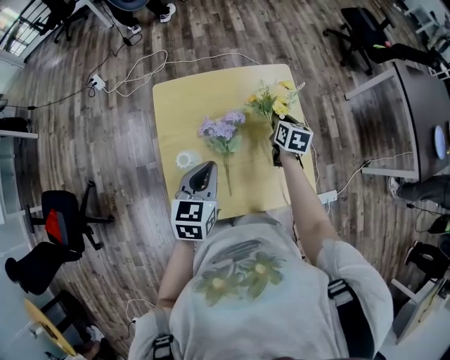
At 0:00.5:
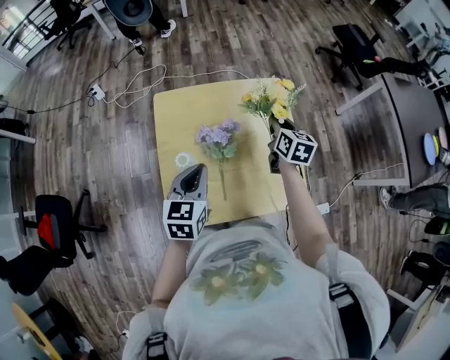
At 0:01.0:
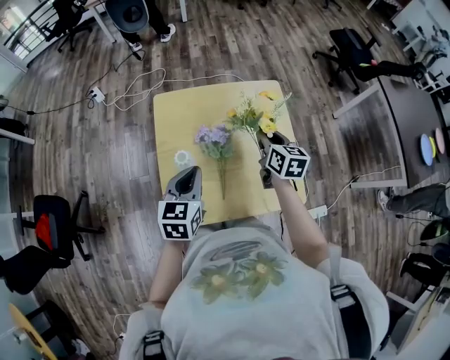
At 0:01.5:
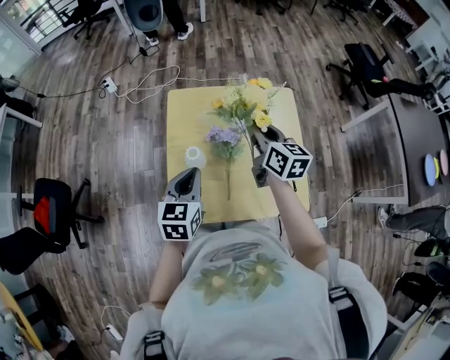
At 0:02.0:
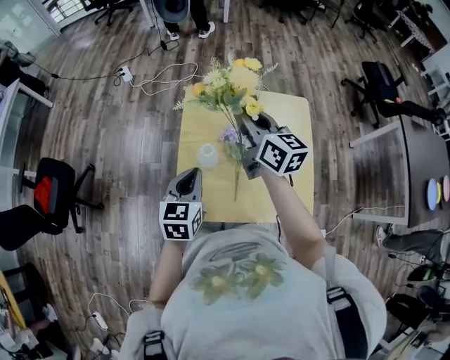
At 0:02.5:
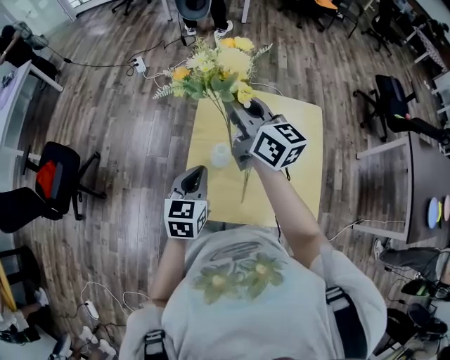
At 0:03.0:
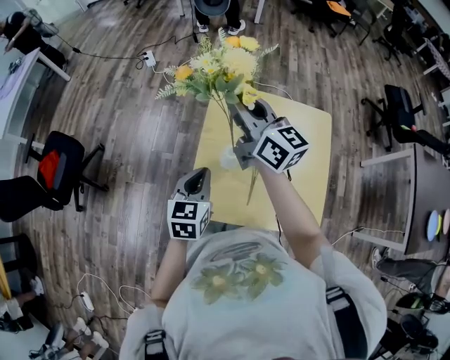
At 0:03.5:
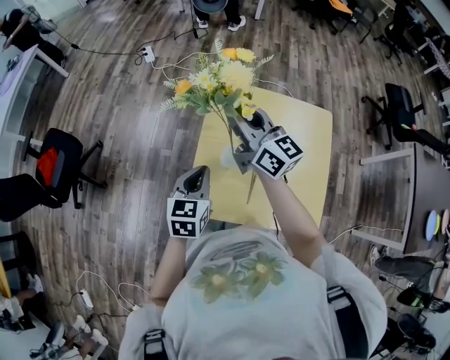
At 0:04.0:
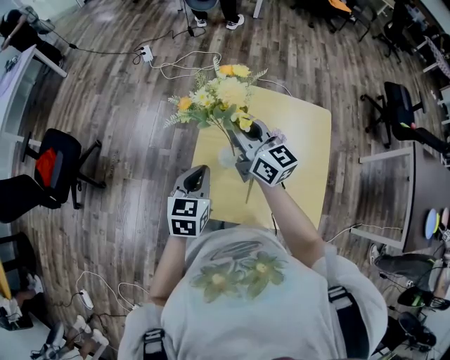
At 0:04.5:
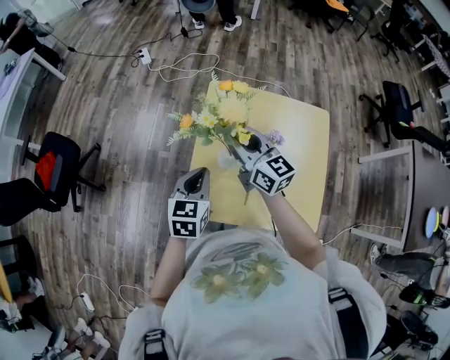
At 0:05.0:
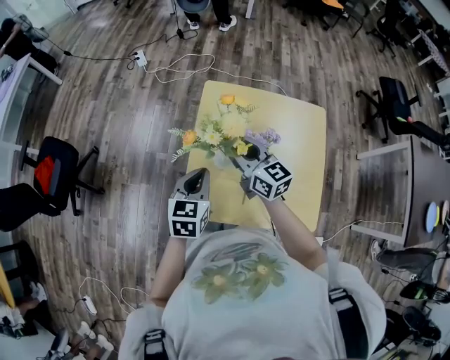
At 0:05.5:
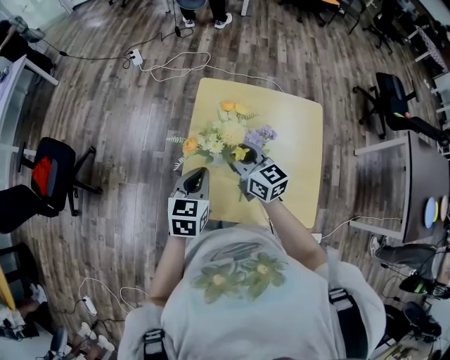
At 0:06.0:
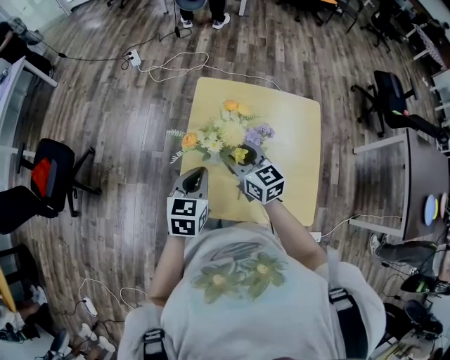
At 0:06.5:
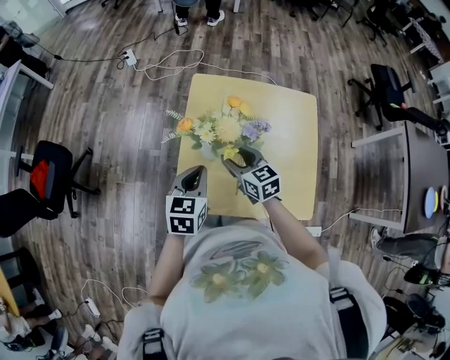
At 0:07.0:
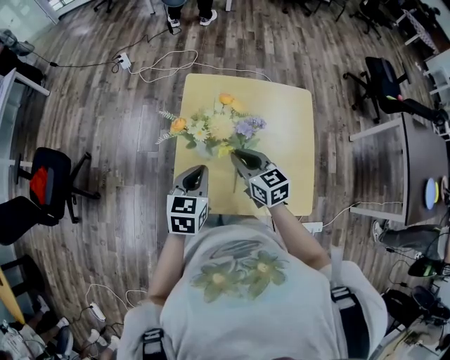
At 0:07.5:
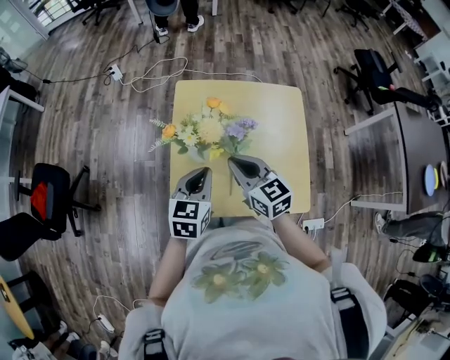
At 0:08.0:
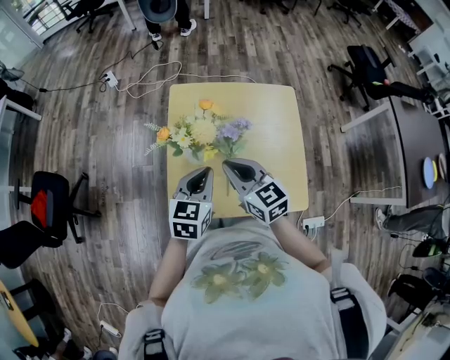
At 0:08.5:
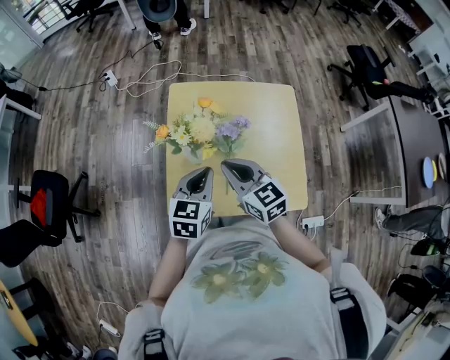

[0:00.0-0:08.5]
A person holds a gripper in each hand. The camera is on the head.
0:00.0 to 0:02.0: The left gripper ends up some 15 cm from where it was. The right gripper moves upward, about 25 cm, and angles its fingers upward, by approximately 40 degrees.
0:02.0 to 0:04.0: The left gripper shifts about 5 cm to the left; the right gripper is displaced to the left by roughly 10 cm.
0:04.0 to 0:06.5: The left gripper shifts by roughly 5 cm; the right gripper travels downward and backward by about 20 cm, swivels about 30 degrees, and opens up.
0:06.5 to 0:08.5: The left gripper travels to the right by roughly 10 cm. The right gripper is displaced upward and backward by about 10 cm, and closes.

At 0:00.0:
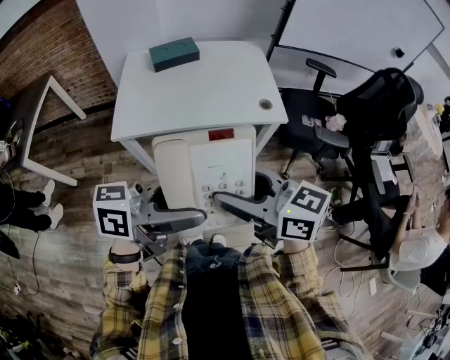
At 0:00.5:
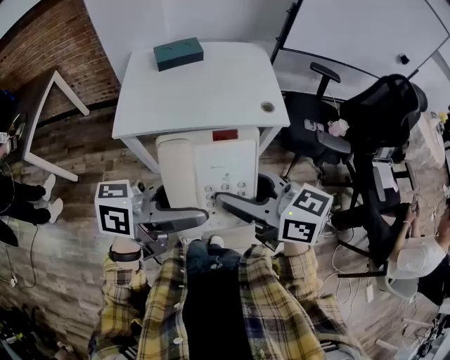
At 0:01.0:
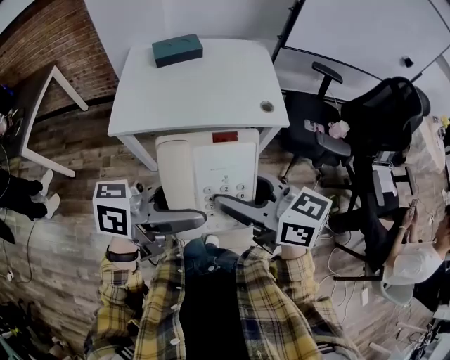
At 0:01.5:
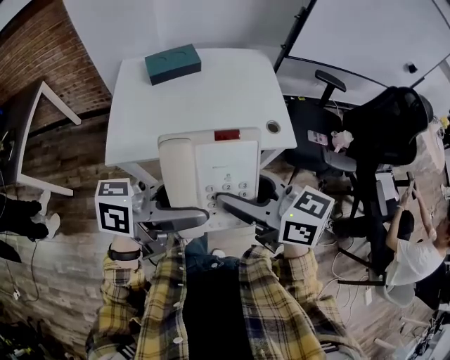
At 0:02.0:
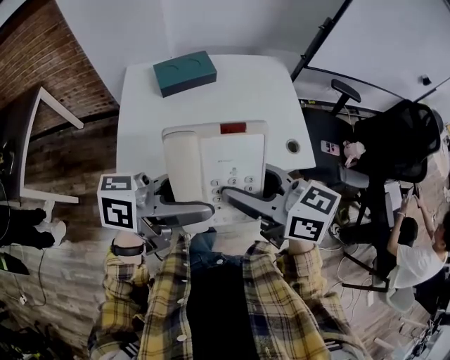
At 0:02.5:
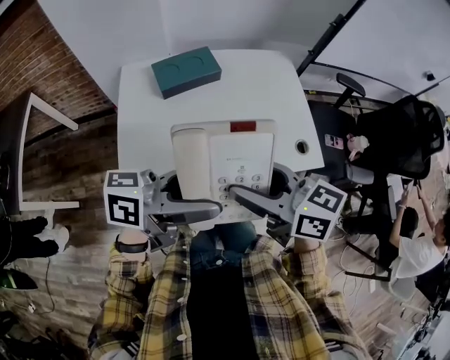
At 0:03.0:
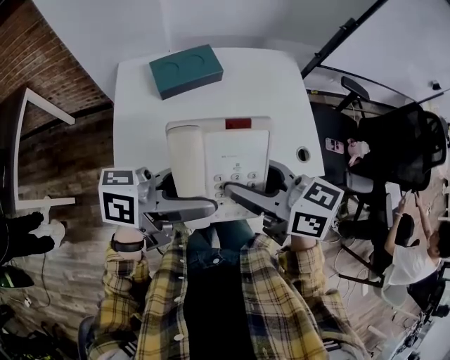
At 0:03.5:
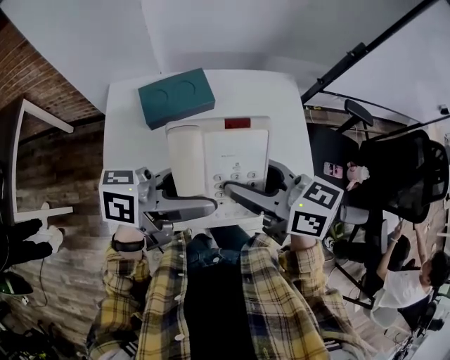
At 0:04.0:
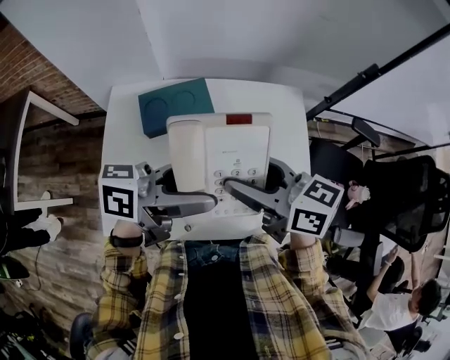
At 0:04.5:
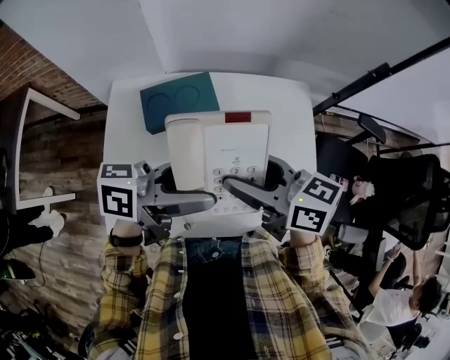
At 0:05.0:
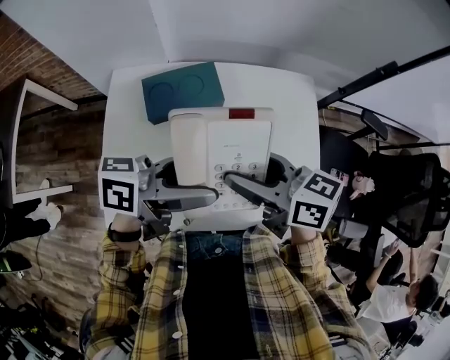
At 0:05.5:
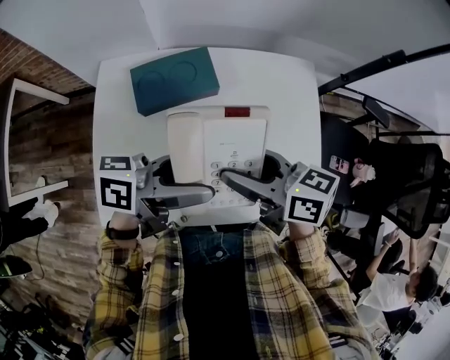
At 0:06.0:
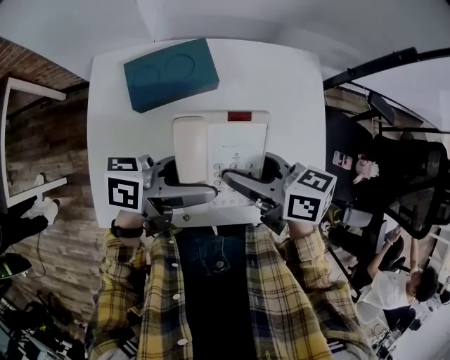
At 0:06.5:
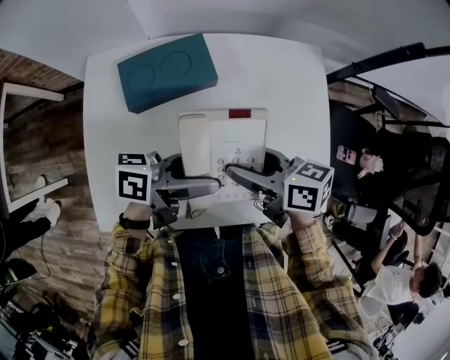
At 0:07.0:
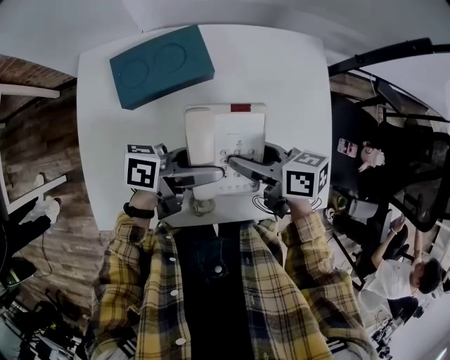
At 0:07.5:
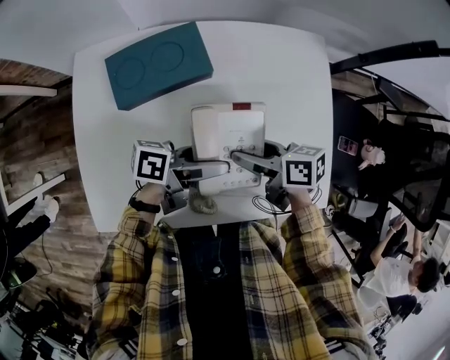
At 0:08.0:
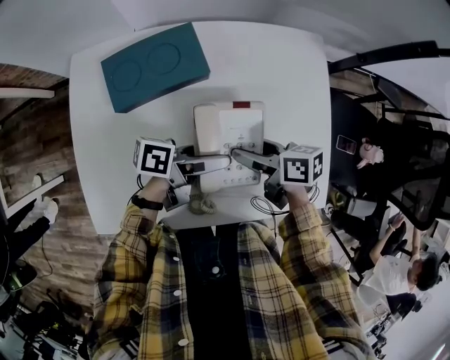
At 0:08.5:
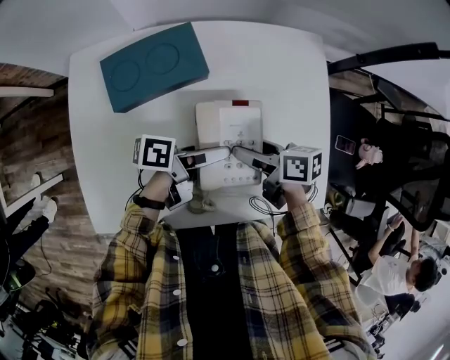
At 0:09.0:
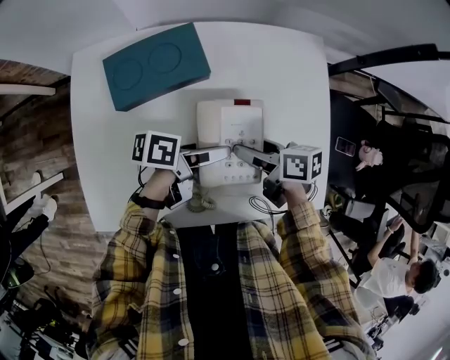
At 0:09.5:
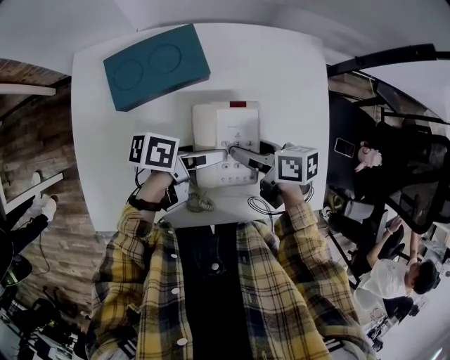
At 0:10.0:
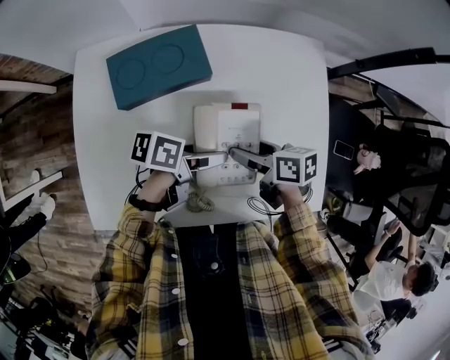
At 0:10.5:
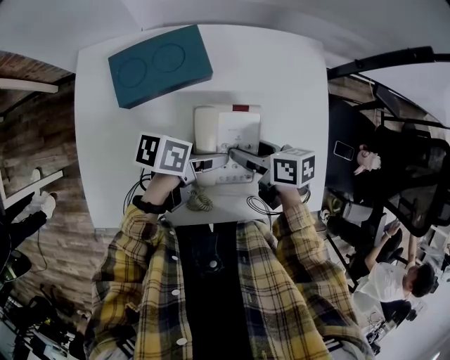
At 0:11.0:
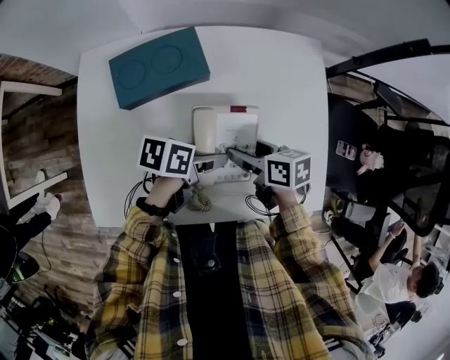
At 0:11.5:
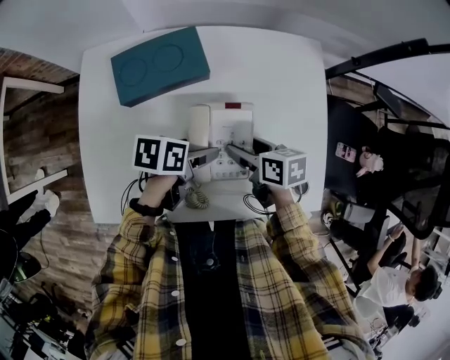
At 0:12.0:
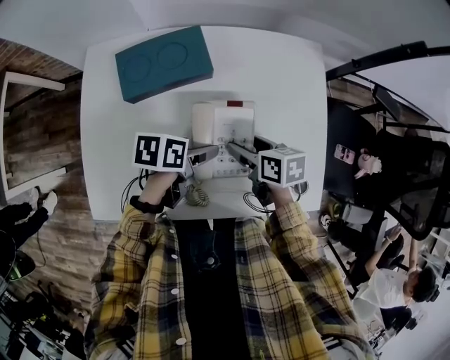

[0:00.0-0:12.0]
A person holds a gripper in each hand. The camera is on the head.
0:00.0 to 0:02.0: The right gripper shifts by roughly 25 cm. Meanwhile the left gripper moves some 25 cm.
0:02.0 to 0:04.0: The right gripper changes place by about 25 cm. The left gripper ends up about 25 cm from where it was.
0:04.0 to 0:06.0: The two grippers go about 10 cm downward.
0:06.0 to 0:08.0: Both grippers move downward, about 15 cm.
0:08.0 to 0:10.0: The left gripper turns by approximately 20 degrees.
0:10.0 to 0:12.0: The left gripper rotates some 20 degrees.

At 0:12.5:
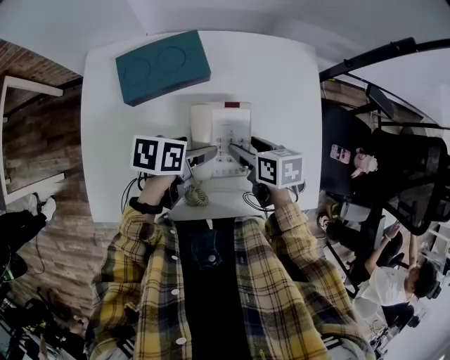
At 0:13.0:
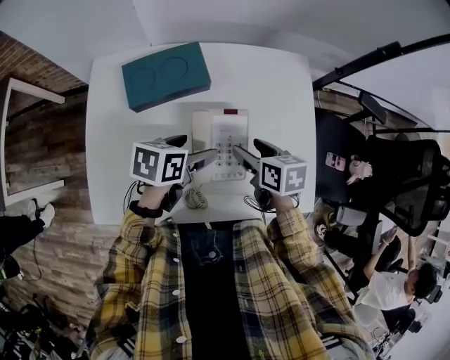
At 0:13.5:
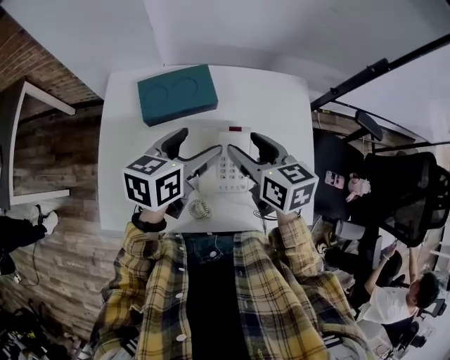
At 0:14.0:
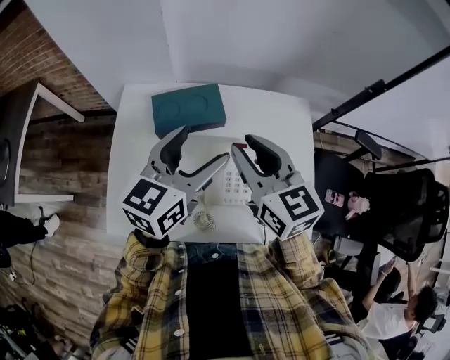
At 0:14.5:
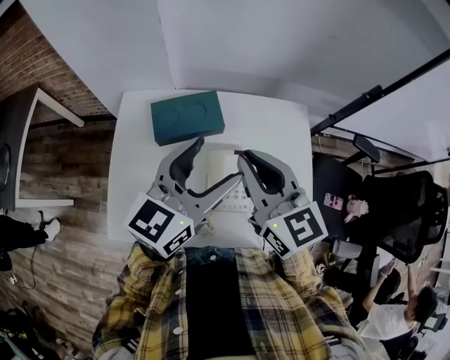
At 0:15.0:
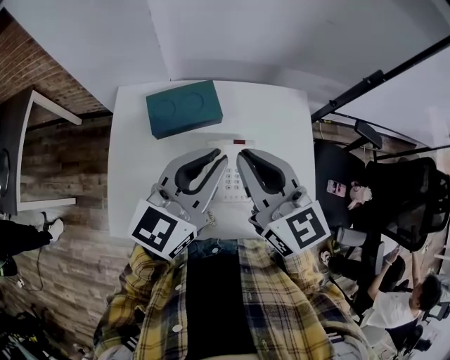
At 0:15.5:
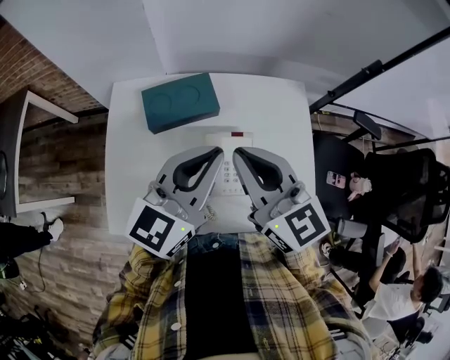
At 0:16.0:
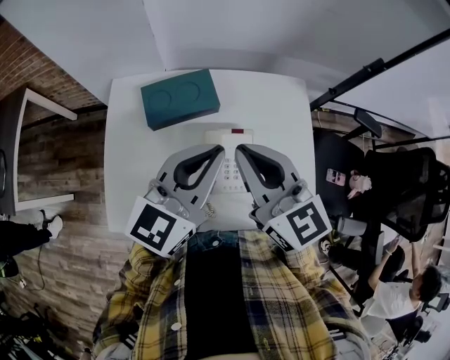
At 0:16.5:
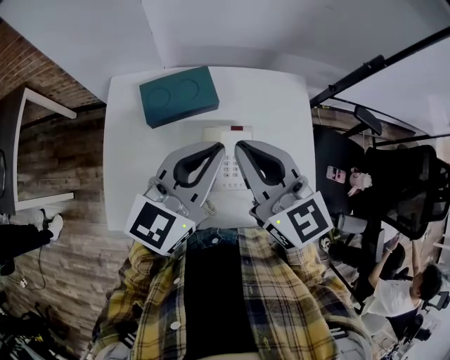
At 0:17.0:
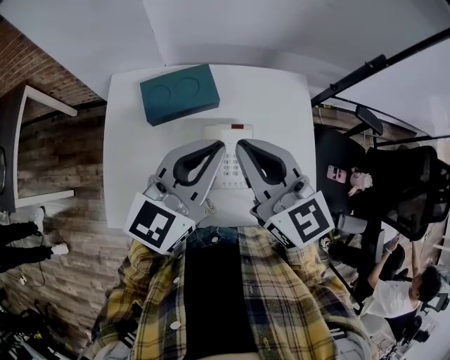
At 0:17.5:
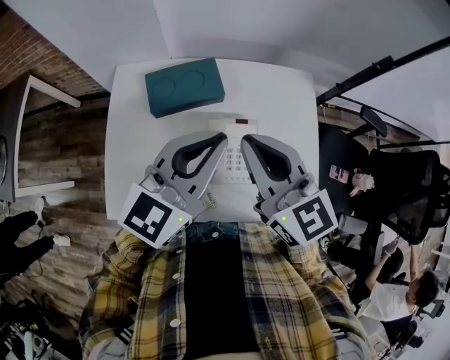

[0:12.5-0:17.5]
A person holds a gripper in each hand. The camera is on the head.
0:12.5 to 0:15.0: The grippers both shift upward by roughly 30 cm. The left gripper points its fingers some 40 degrees further upward, and closes; the right gripper tilts its fingers approximately 40 degrees upward, and closes up.
0:15.0 to 0:17.5: The two grippers keep their place.

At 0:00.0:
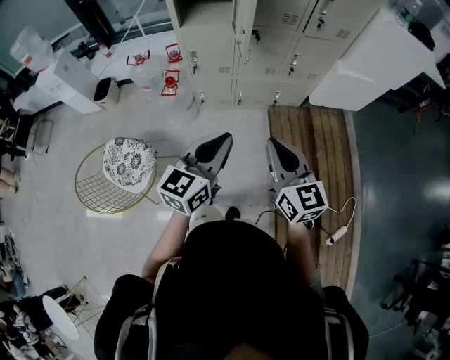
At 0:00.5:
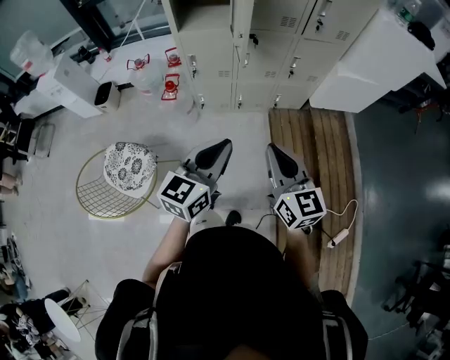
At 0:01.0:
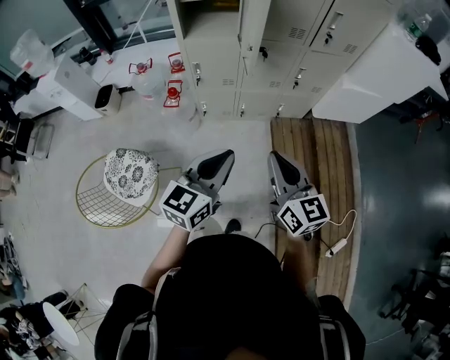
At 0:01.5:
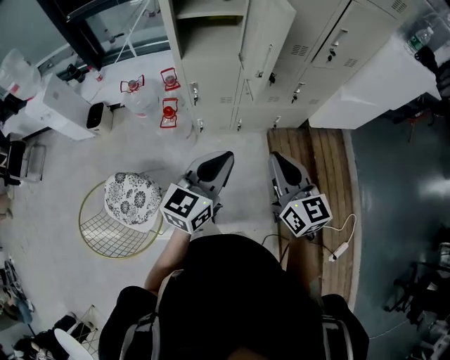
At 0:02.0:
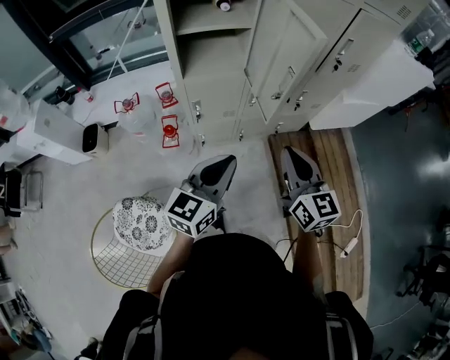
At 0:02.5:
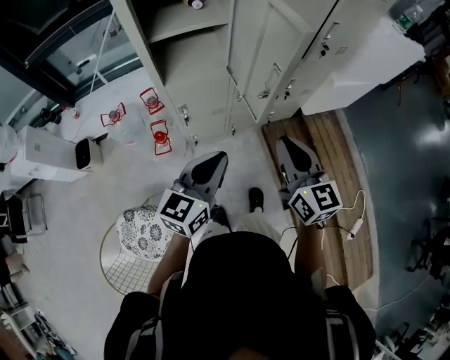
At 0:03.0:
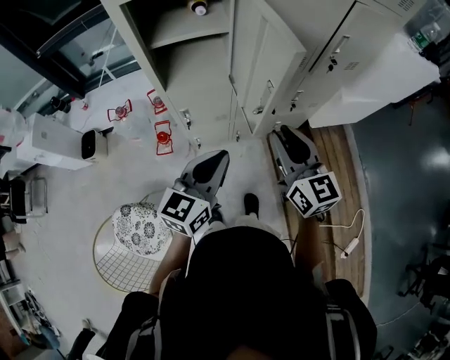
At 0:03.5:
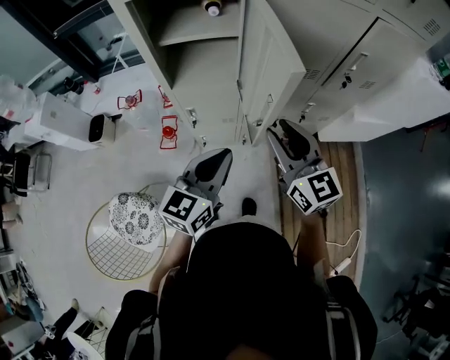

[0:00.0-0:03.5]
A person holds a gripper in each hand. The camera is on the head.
0:00.0 to 0:02.0: Both grippers move forward and to the left, approximately 25 cm.
0:02.0 to 0:03.5: The left gripper travels forward and to the right by about 15 cm, while the right gripper is displaced forward by roughly 15 cm, and opens its fingers.
